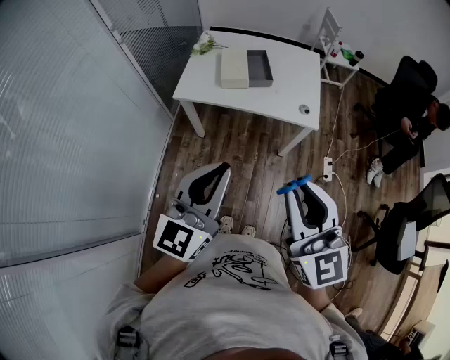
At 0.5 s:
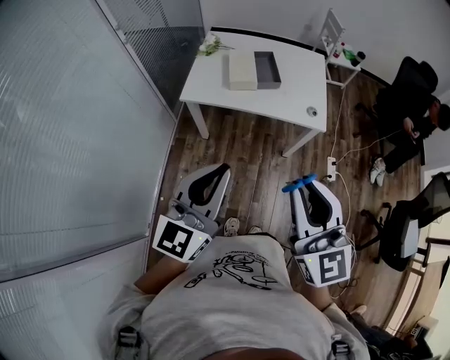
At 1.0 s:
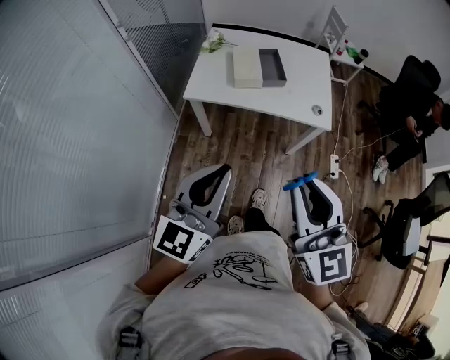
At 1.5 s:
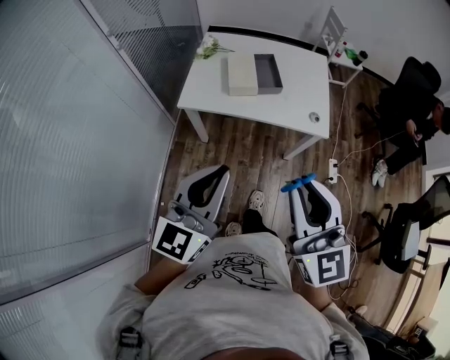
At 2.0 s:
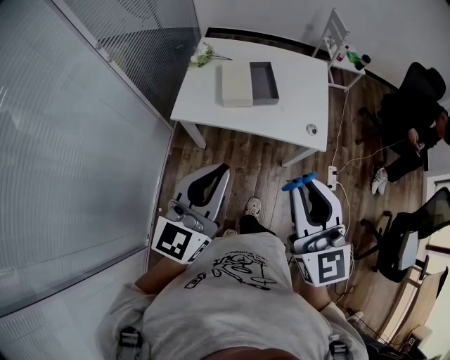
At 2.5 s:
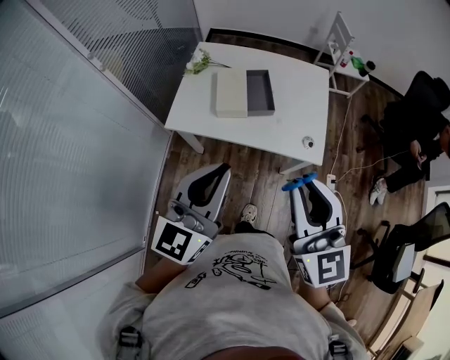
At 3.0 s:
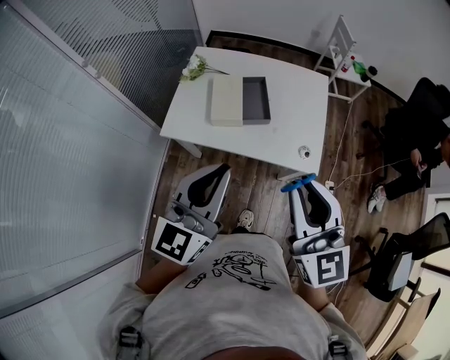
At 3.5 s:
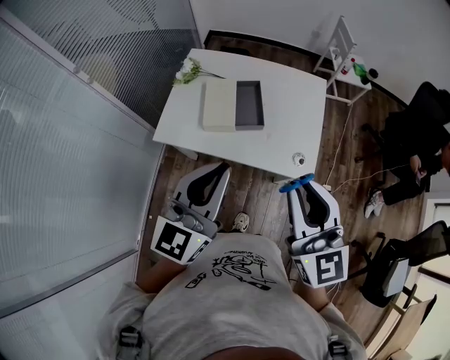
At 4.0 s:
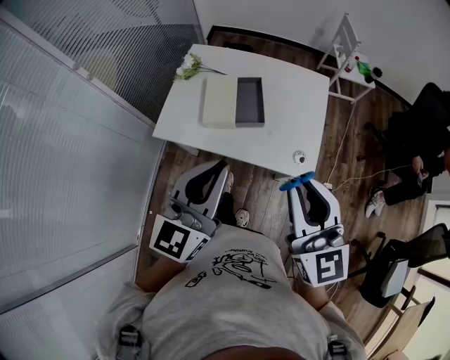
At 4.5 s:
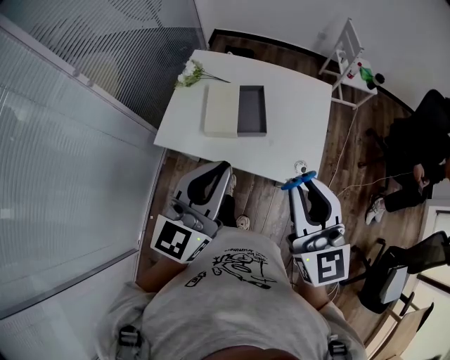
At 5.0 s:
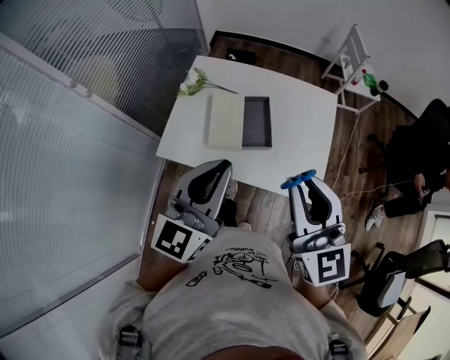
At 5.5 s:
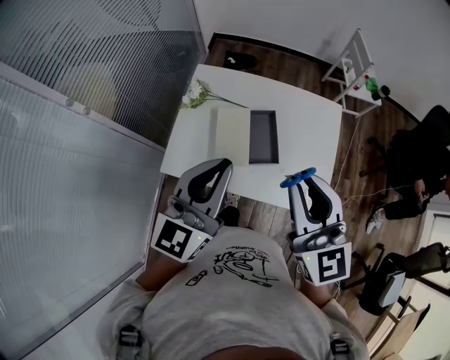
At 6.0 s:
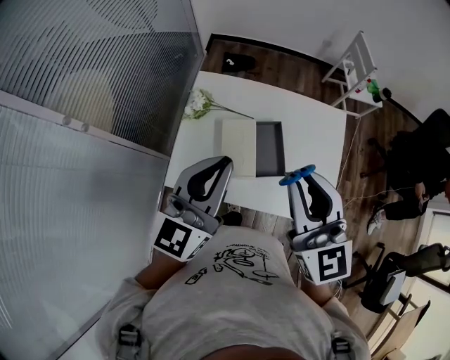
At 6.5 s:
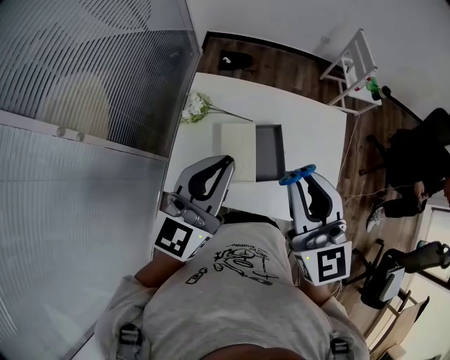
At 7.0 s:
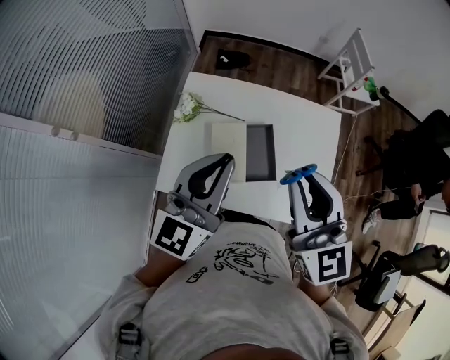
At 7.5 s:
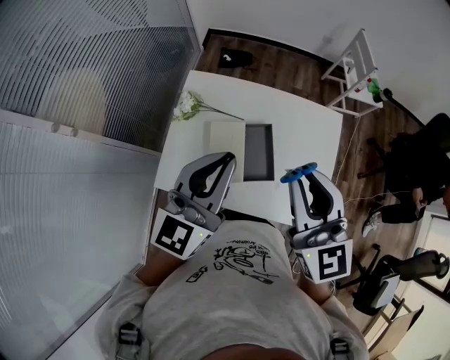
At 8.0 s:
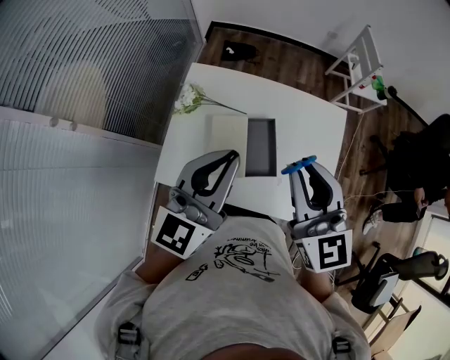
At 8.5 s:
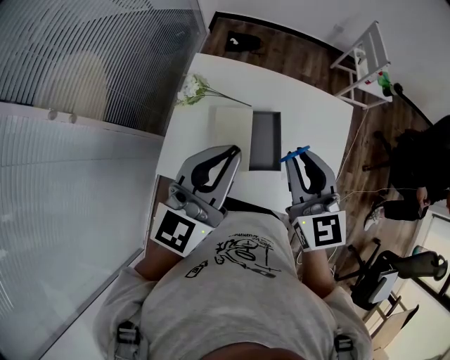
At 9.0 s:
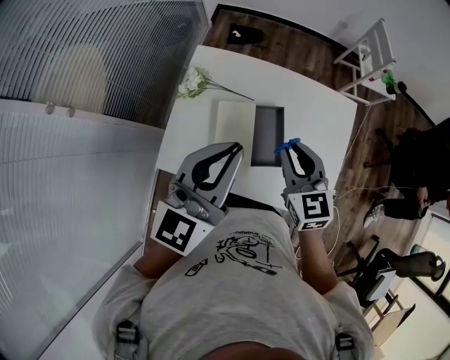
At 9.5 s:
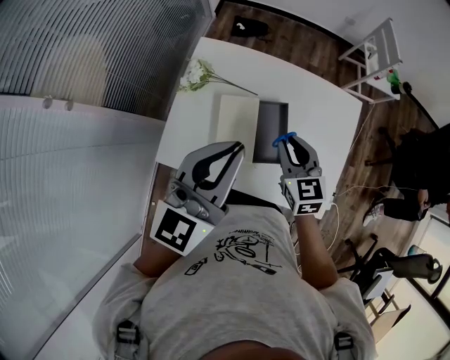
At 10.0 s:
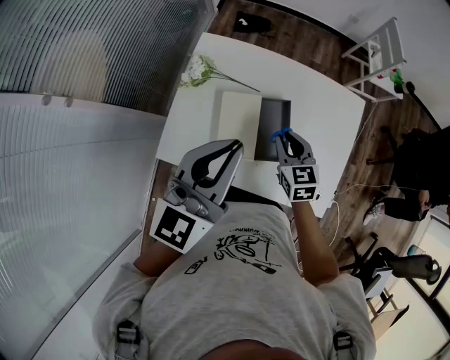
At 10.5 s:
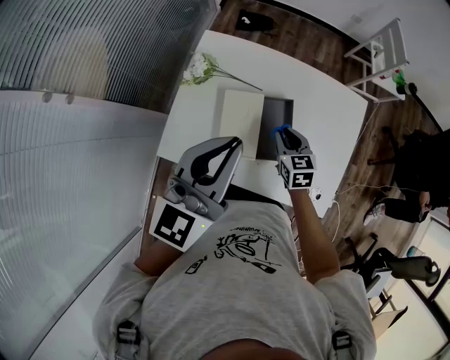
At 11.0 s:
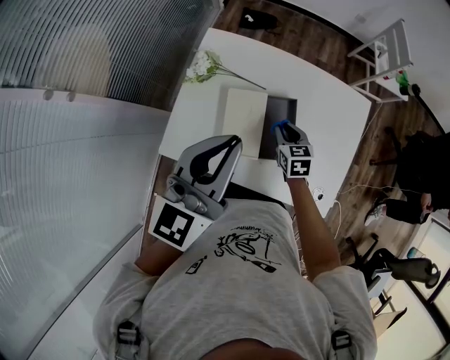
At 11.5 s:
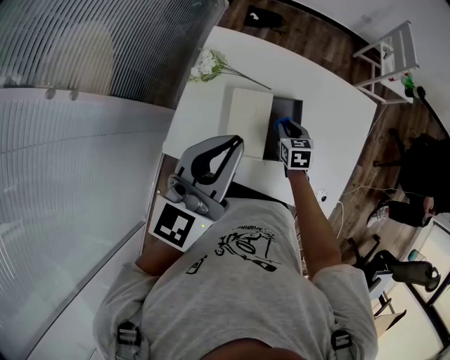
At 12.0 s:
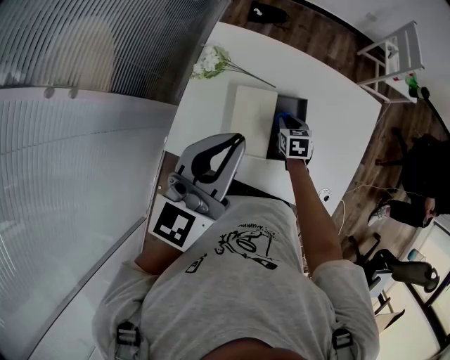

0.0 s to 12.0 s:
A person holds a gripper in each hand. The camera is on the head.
0.0 to 2.0 s: The grippers both shift forward by about 15 cm.
2.0 to 4.0 s: The two grippers go about 20 cm forward and to the right.
4.0 to 6.0 s: Both grippers move forward and to the left, some 25 cm.
6.0 to 8.0 s: The right gripper heads forward, covering some 5 cm; the left gripper is displaced to the right by approximately 5 cm.
8.0 to 10.0 s: The right gripper heads downward, covering about 25 cm, and rotates approximately 30 degrees.
10.0 to 12.0 s: The right gripper travels downward by approximately 15 cm, and swivels some 20 degrees.

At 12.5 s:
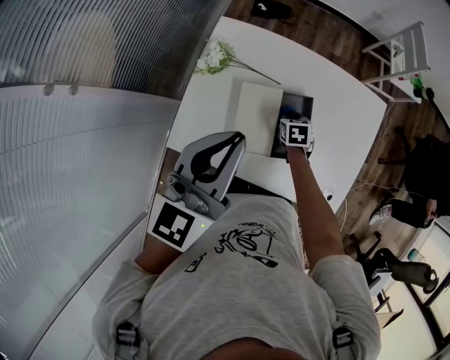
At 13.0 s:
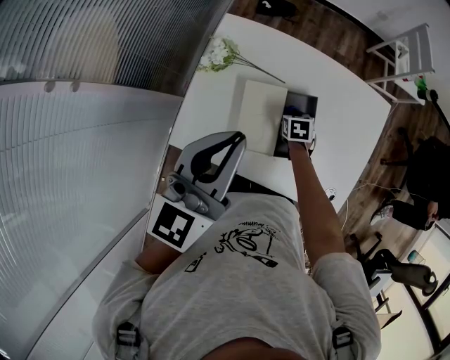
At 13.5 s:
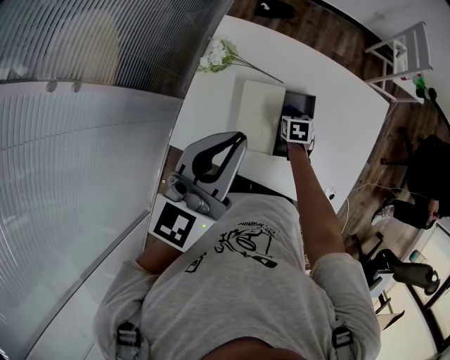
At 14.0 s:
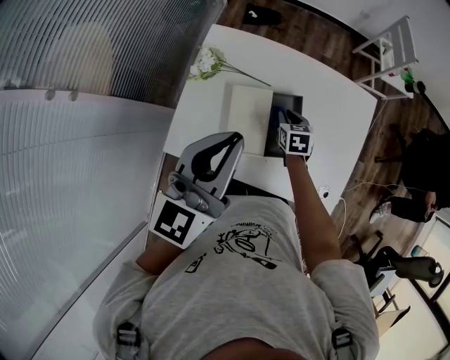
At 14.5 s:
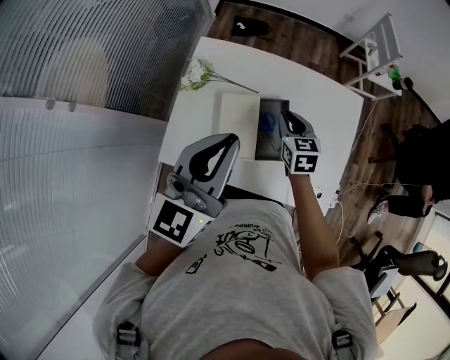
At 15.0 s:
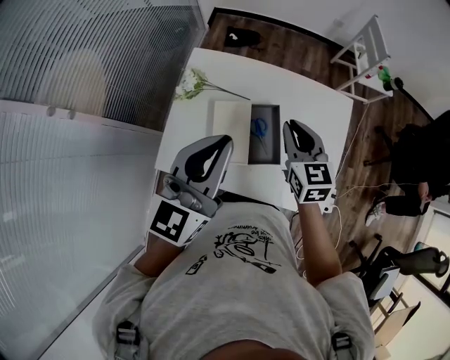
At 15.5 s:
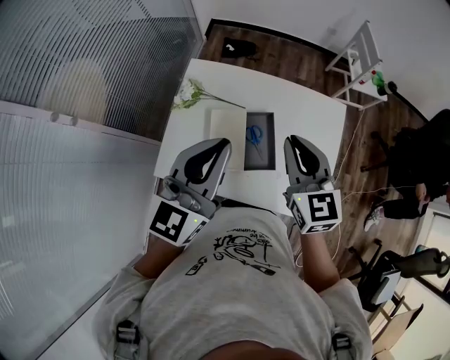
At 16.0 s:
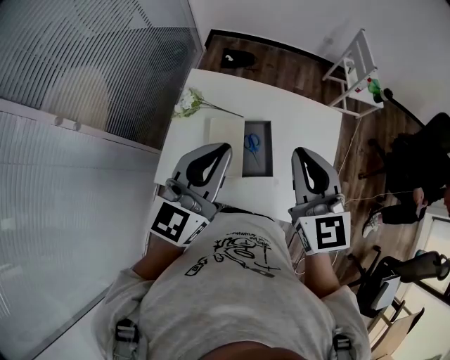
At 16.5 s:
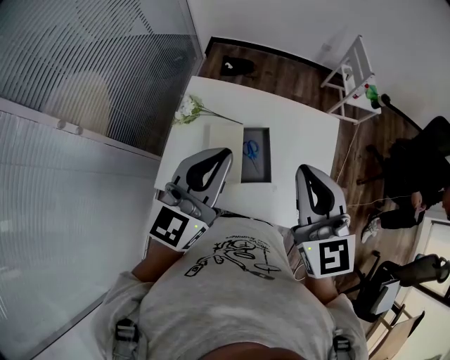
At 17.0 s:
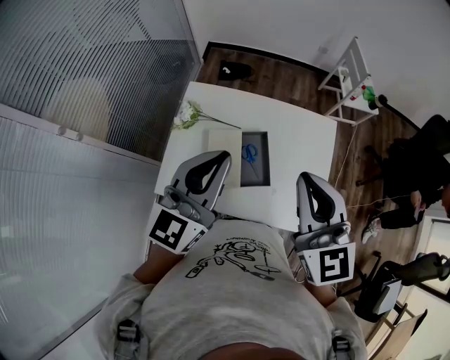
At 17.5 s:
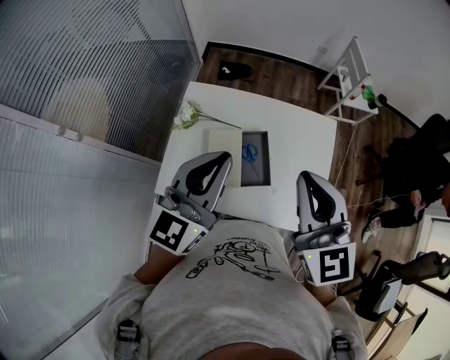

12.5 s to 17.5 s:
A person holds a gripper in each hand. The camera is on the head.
12.5 to 15.0 s: The left gripper changes place by roughly 5 cm. Meanwhile the right gripper goes some 30 cm upward, and tilts its fingers about 40 degrees upward.
15.0 to 17.5 s: The left gripper moves some 5 cm. Meanwhile the right gripper shifts roughly 25 cm upward and backward, and swivels about 20 degrees.

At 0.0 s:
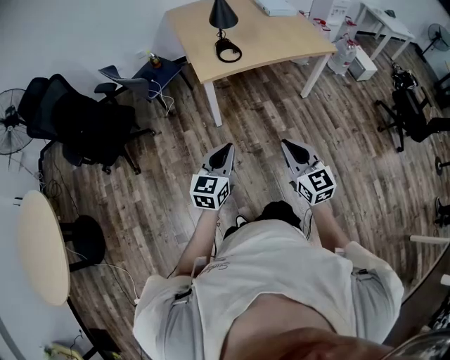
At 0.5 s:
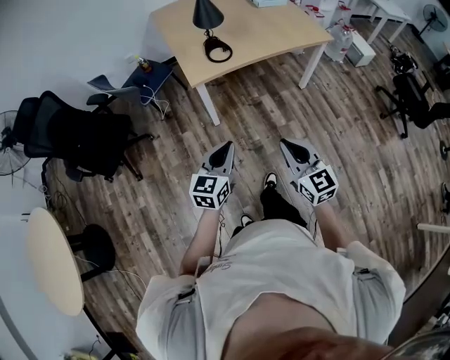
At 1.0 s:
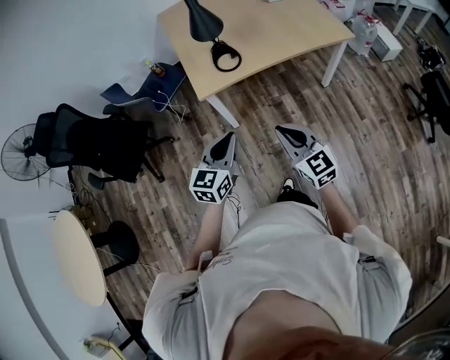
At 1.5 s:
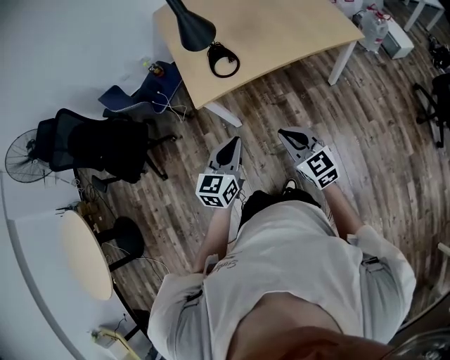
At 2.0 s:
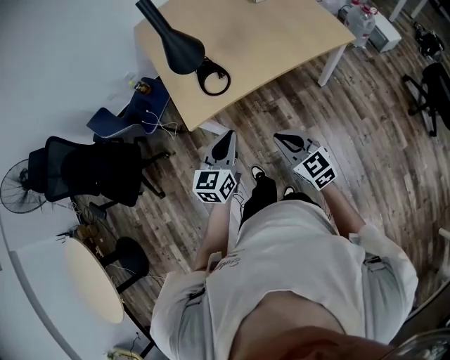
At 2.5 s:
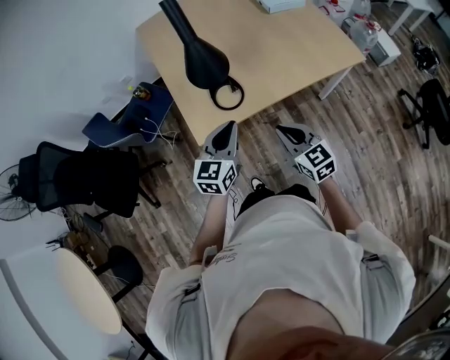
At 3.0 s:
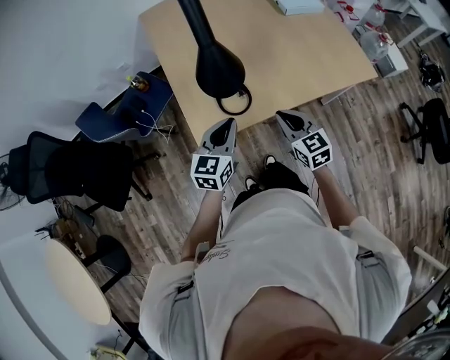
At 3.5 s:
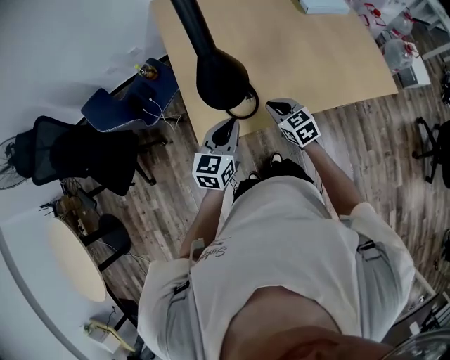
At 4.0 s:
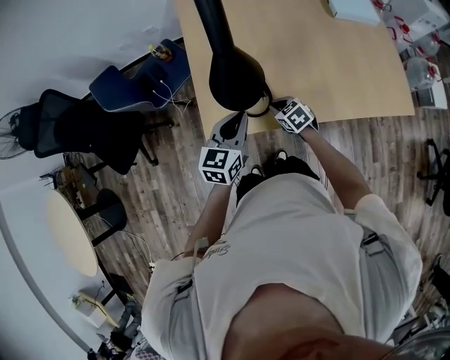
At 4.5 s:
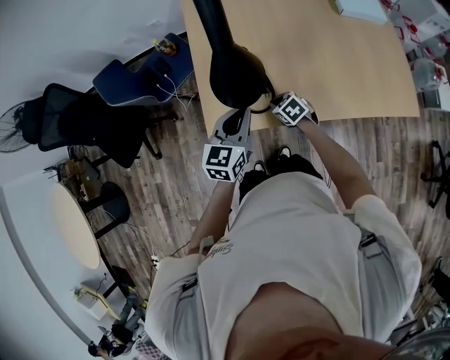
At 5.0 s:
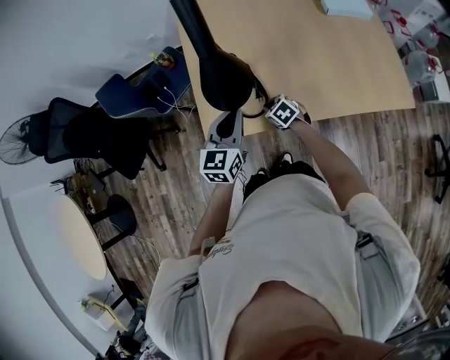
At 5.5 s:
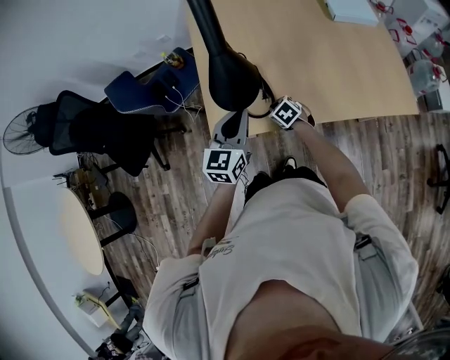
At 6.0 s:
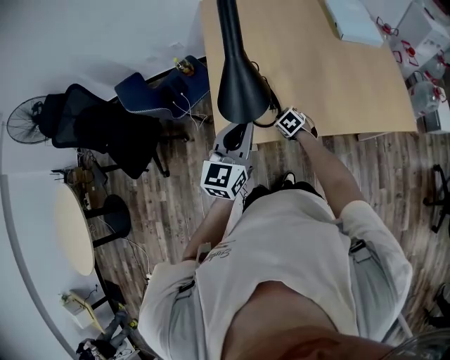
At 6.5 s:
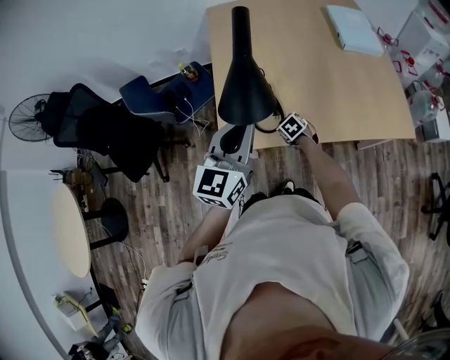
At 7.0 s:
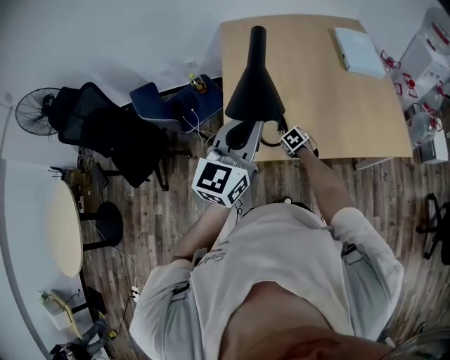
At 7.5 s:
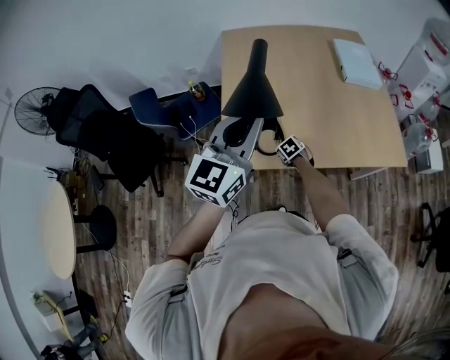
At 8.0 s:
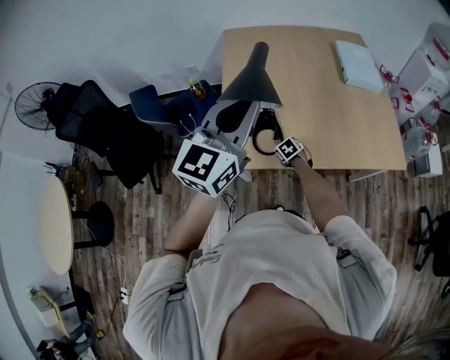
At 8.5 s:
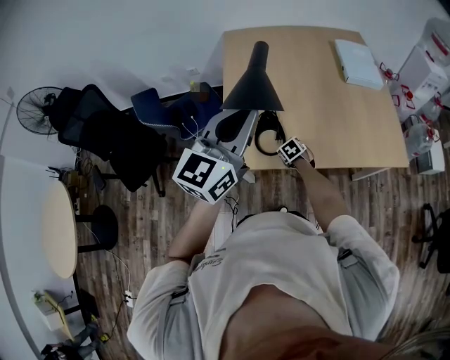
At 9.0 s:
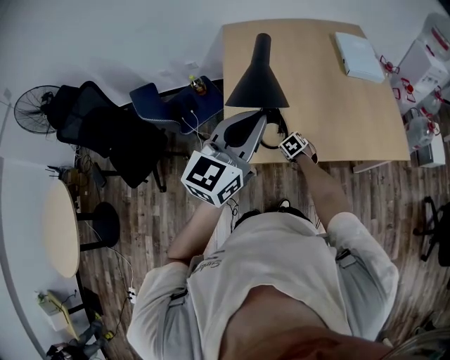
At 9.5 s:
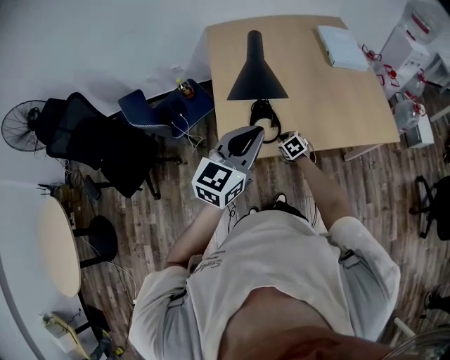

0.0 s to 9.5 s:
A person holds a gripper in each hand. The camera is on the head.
0.0 to 2.0 s: Both grippers move forward, roughly 35 cm.
2.0 to 4.0 s: The left gripper heads forward, covering roughly 25 cm. The right gripper travels forward and downward by about 40 cm, and turns by roughly 40 degrees.
4.0 to 5.5 s: The grippers stay close to where they were, moving slightly.
5.5 to 7.5 s: The left gripper is displaced upward by some 25 cm, and rotates roughly 20 degrees.
7.5 to 9.5 s: The right gripper moves roughly 5 cm; the left gripper heads downward, covering approximately 5 cm.
